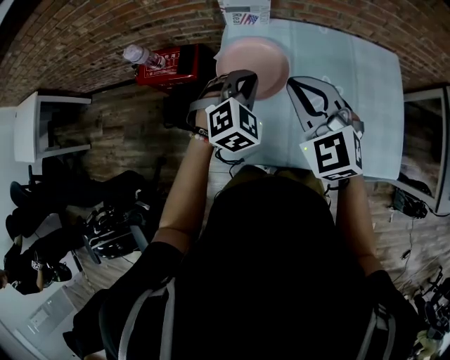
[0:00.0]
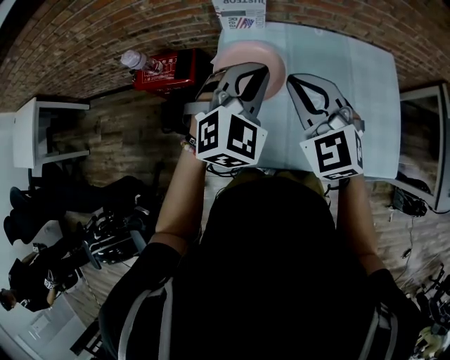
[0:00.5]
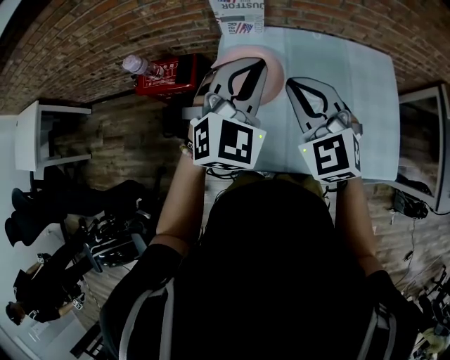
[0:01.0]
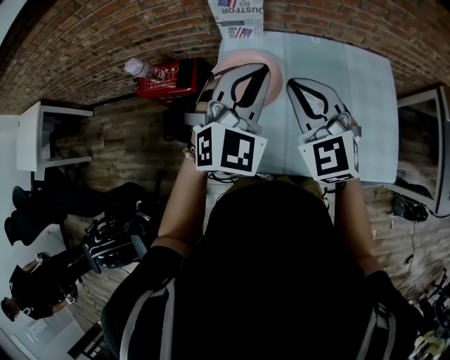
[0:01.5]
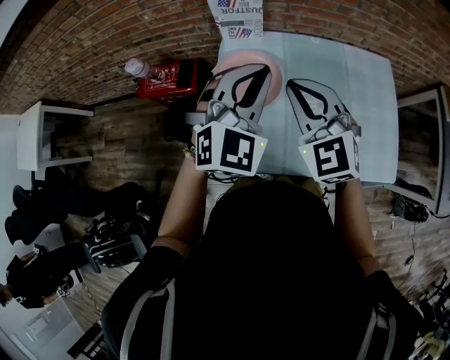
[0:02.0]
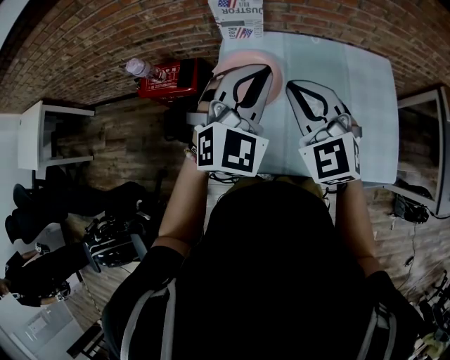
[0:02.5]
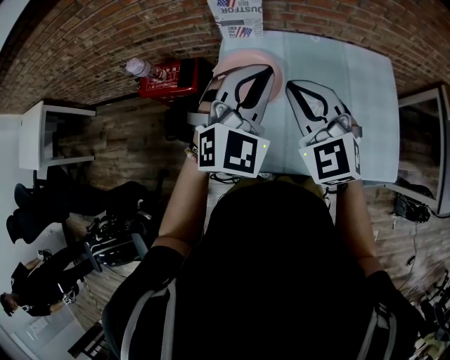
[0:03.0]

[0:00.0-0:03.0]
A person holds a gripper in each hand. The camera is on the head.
0:00.0 to 0:01.5: The left gripper shifts roughly 15 cm upward, and changes its angle by about 30 degrees.
0:01.5 to 0:03.0: The grippers stay close to where they were, moving slightly.

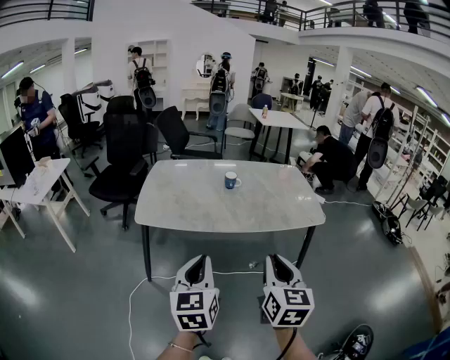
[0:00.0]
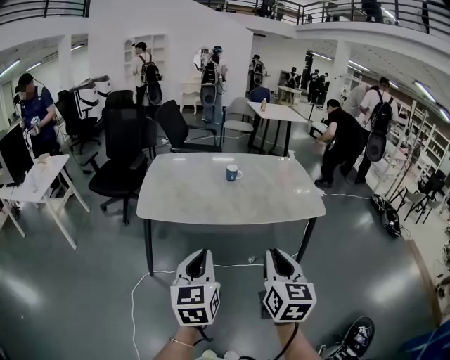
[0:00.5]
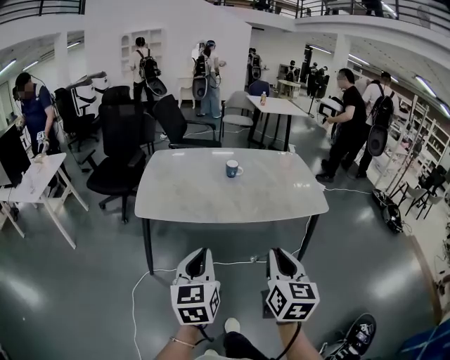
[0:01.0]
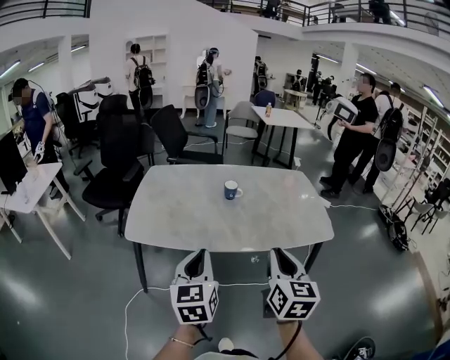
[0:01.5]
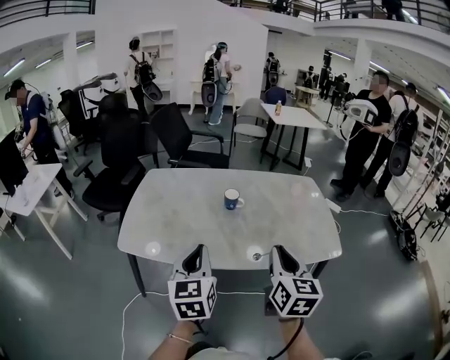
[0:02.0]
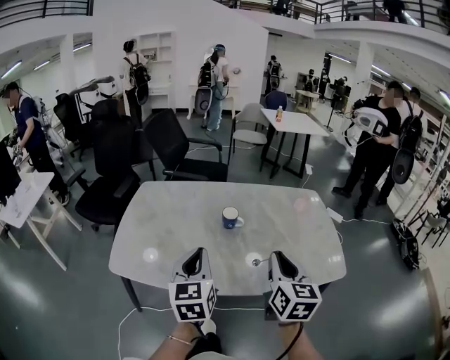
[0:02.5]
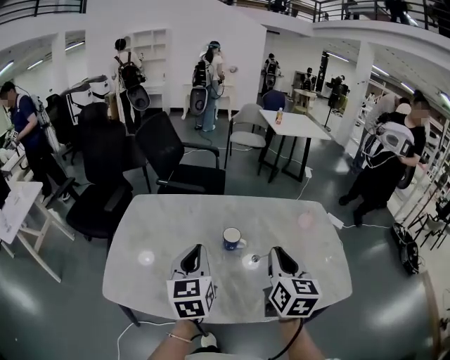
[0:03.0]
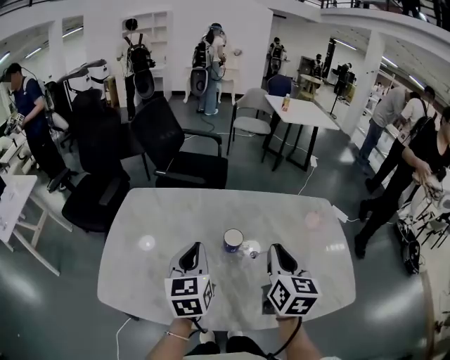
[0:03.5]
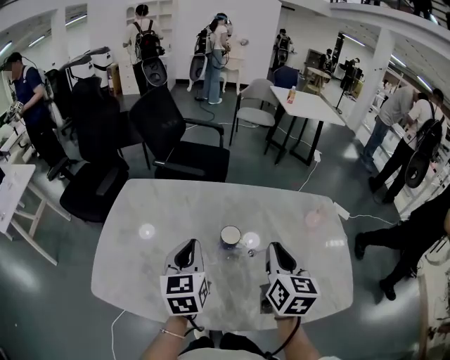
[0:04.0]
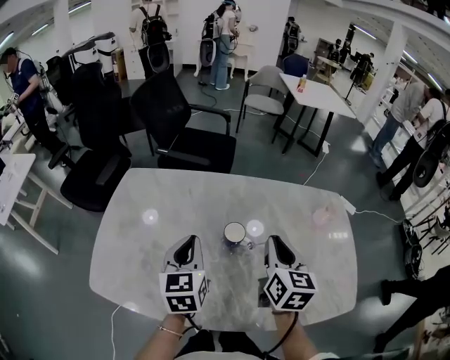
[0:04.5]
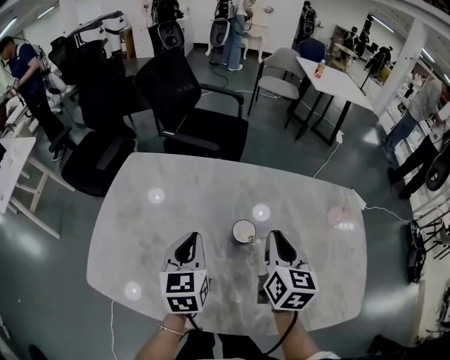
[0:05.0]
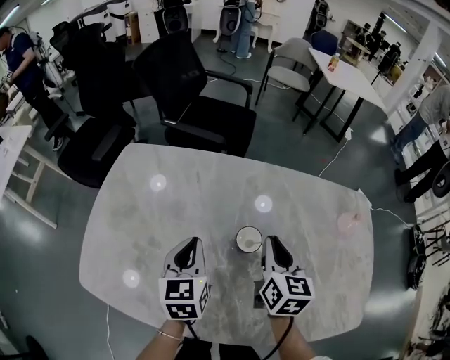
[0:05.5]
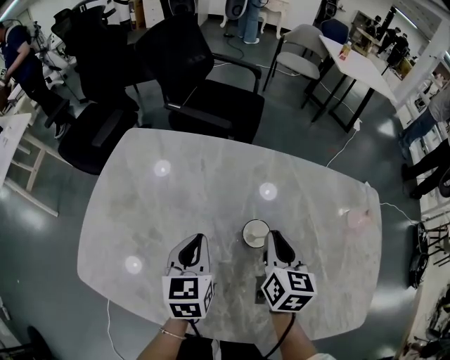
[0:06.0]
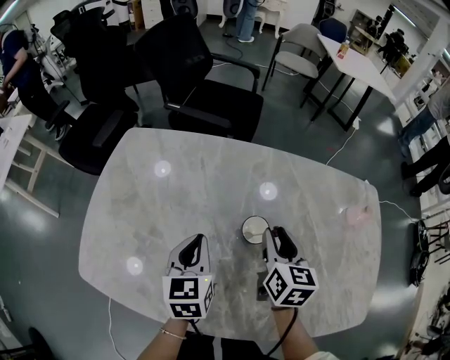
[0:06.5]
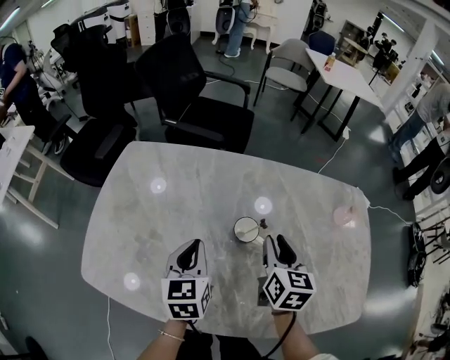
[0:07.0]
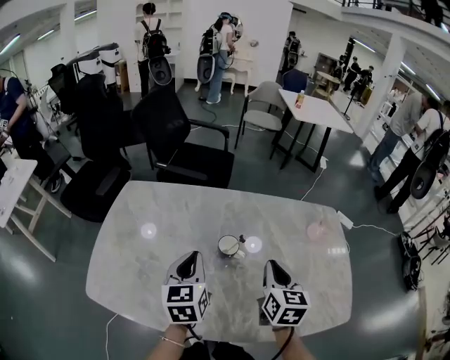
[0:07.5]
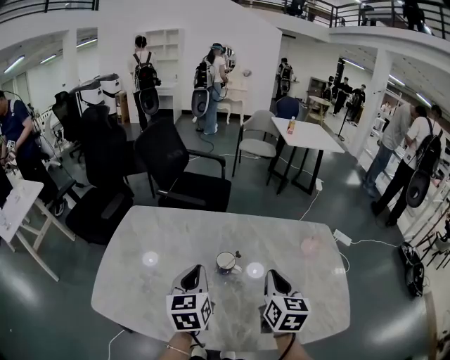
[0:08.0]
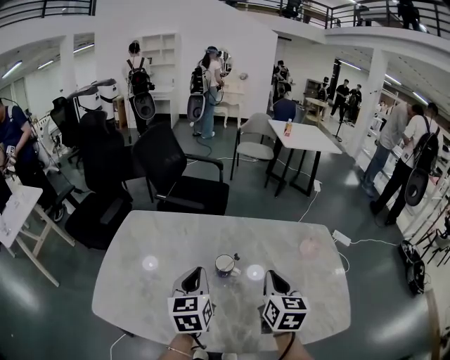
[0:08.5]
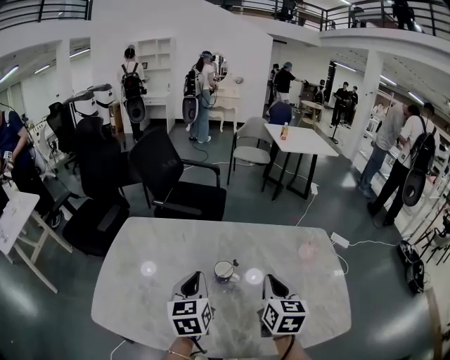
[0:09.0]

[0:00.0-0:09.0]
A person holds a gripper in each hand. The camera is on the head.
0:00.0 to 0:02.0: Both grippers travel together forward, approximately 25 cm.
0:02.0 to 0:04.5: Both grippers travel together forward, roughly 30 cm.
0:04.5 to 0:07.0: The grippers both shift downward by approximately 10 cm.
0:07.0 to 0:09.0: The right gripper goes some 15 cm upward, backward and to the right, and closes; the left gripper goes some 10 cm upward and to the right.

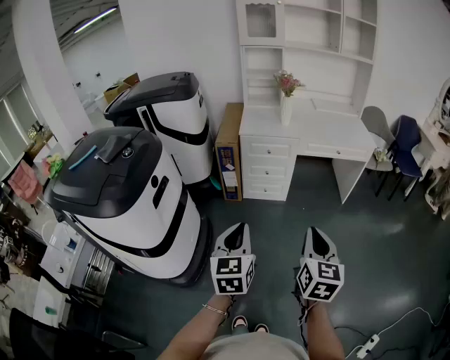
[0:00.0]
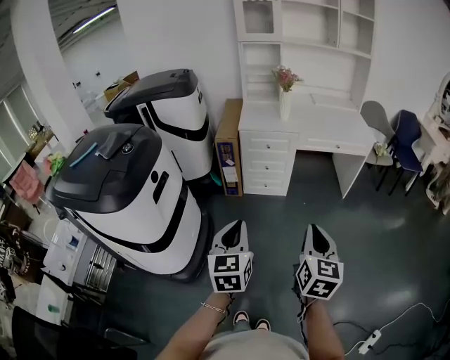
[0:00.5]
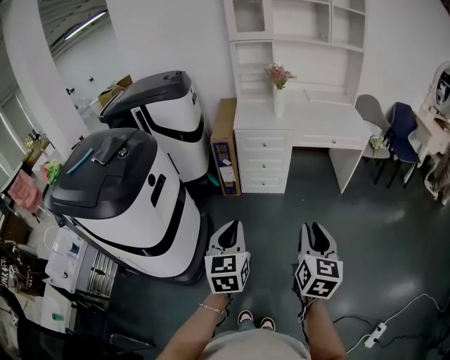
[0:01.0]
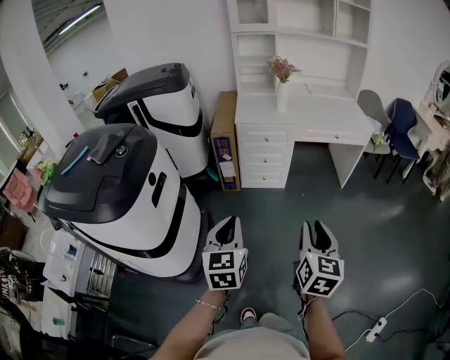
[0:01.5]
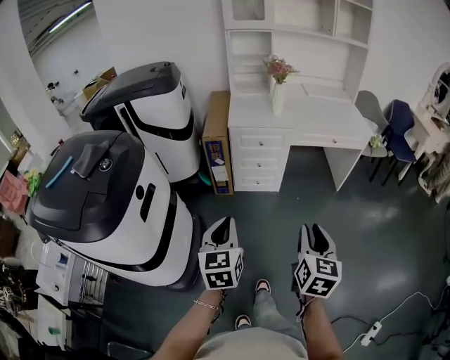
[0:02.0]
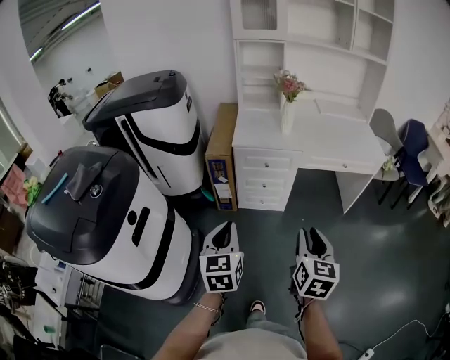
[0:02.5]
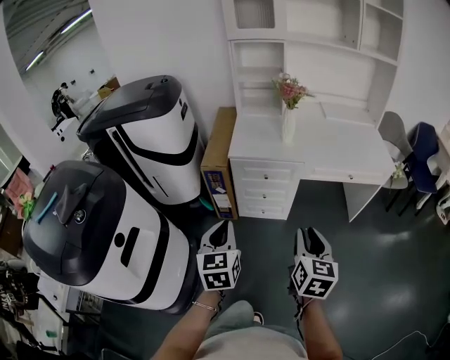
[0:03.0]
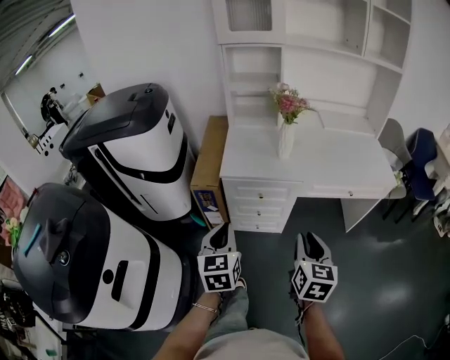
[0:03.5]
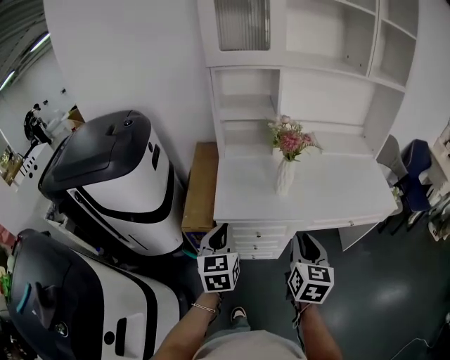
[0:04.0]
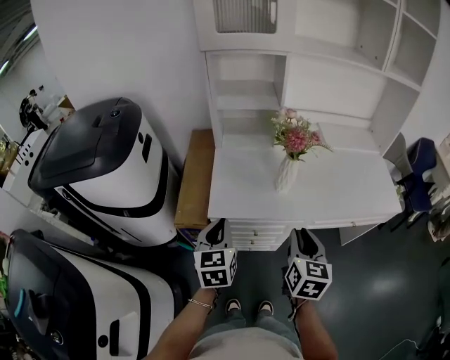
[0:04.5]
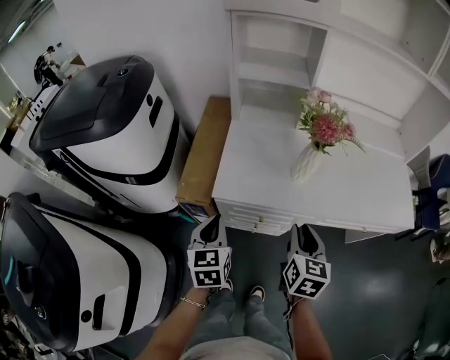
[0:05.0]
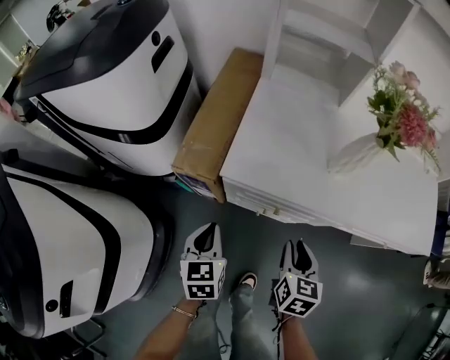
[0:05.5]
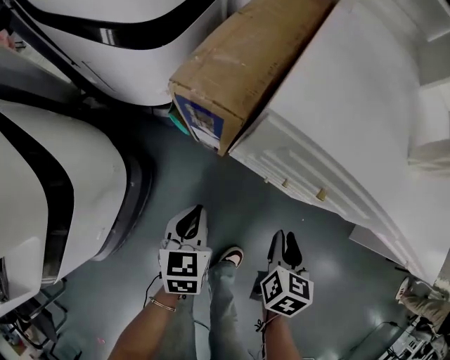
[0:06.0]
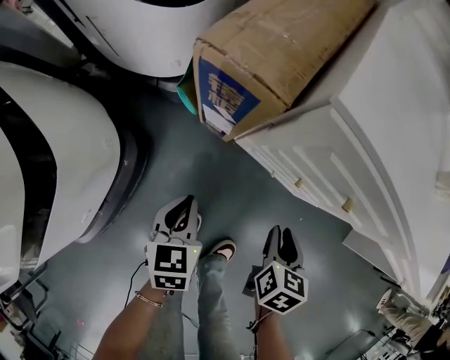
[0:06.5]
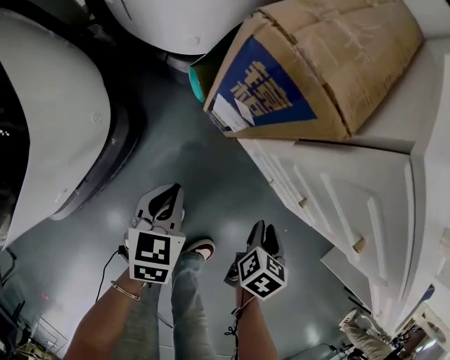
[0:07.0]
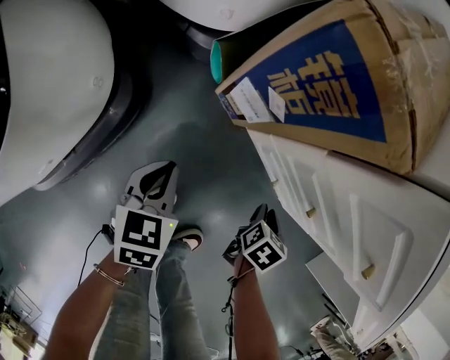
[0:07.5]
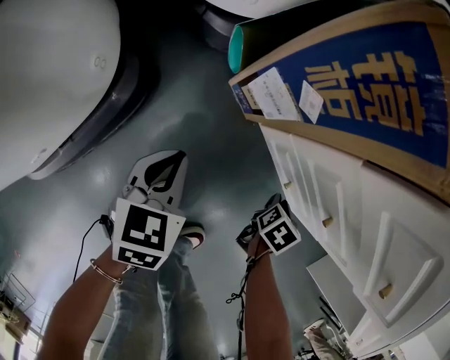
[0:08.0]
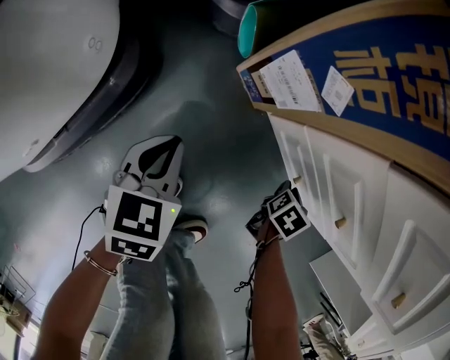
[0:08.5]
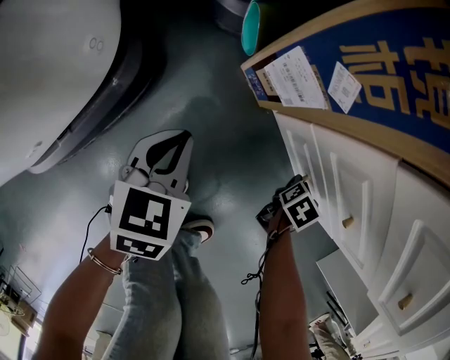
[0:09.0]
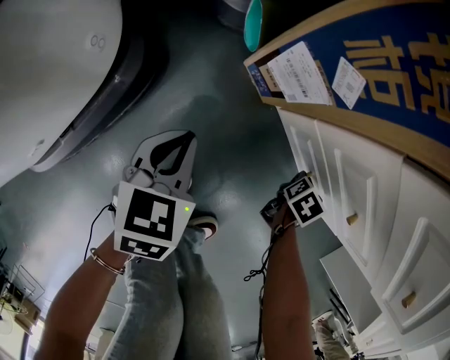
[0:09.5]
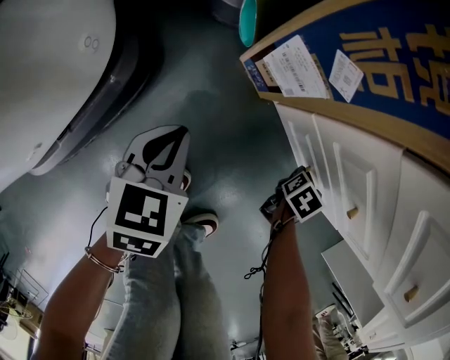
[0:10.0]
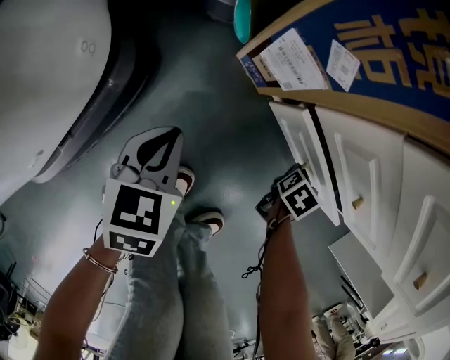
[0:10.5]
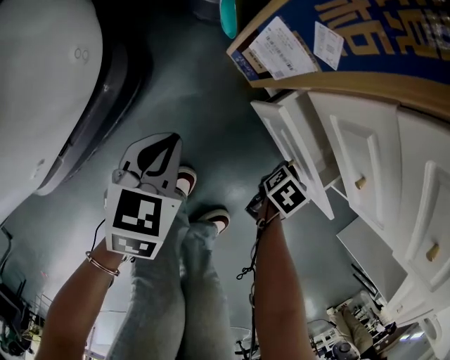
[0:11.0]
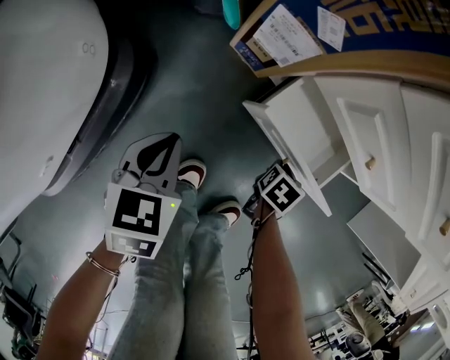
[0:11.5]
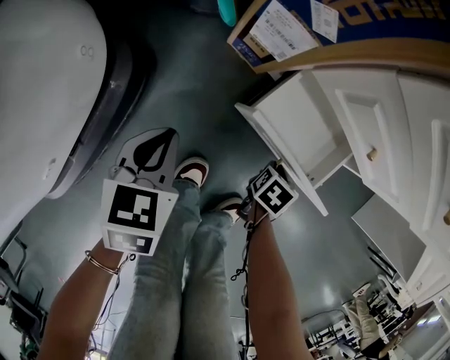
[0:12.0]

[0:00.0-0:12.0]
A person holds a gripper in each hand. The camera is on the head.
0:00.0 to 0:02.0: The left gripper heads forward and to the left, covering some 10 cm, while the right gripper shifts about 5 cm forward, and opens.
0:02.0 to 0:04.0: The pair of grippers is taken forward, some 50 cm.
0:04.0 to 0:06.0: The two grippers go about 40 cm downward. The right gripper rotates roughly 30 degrees. The left gripper swivels roughly 30 degrees.
0:06.0 to 0:08.0: The left gripper is displaced downward and to the left by roughly 20 cm; the right gripper goes some 30 cm downward, and rotates approximately 20 degrees.
0:08.0 to 0:10.0: The right gripper moves about 5 cm.
0:10.0 to 0:12.0: The right gripper goes about 15 cm backward. The left gripper travels backward by some 5 cm.

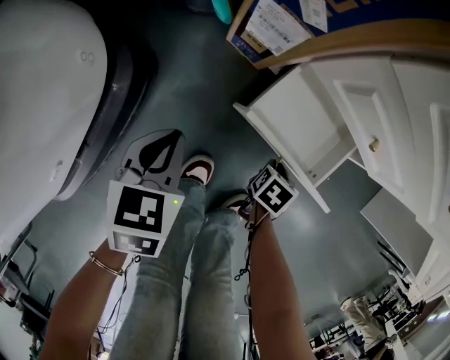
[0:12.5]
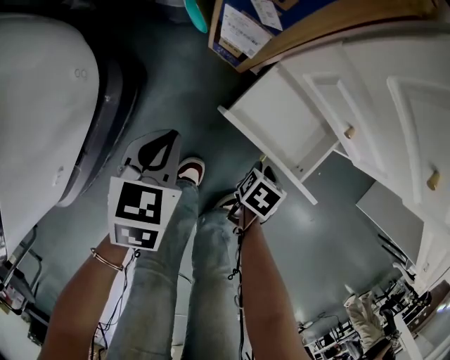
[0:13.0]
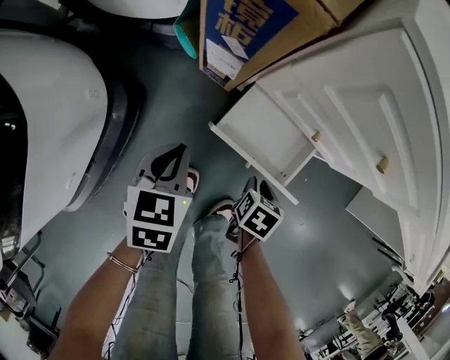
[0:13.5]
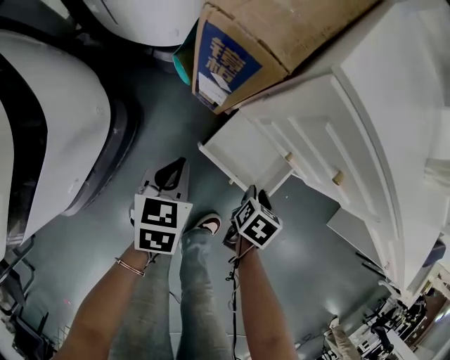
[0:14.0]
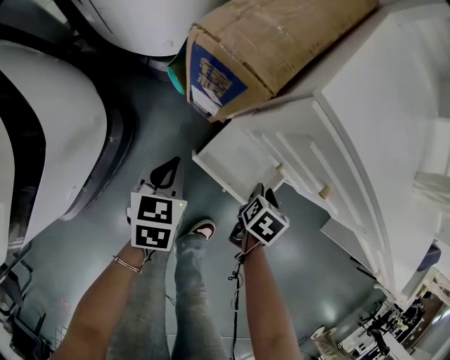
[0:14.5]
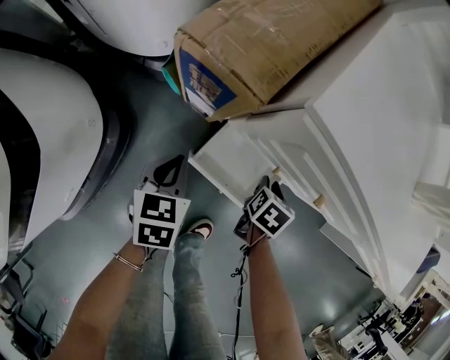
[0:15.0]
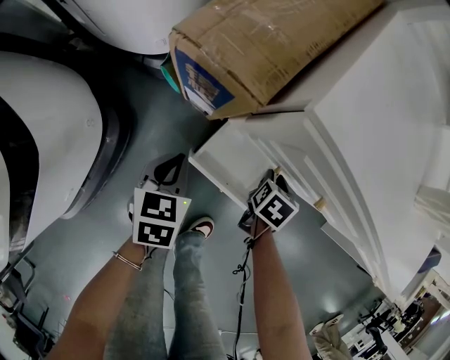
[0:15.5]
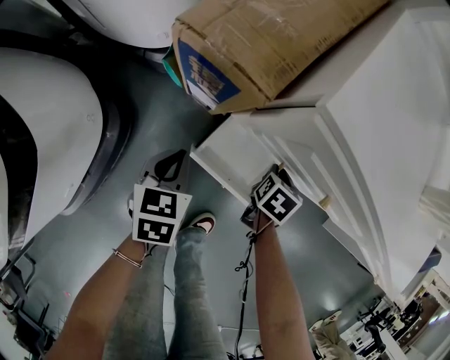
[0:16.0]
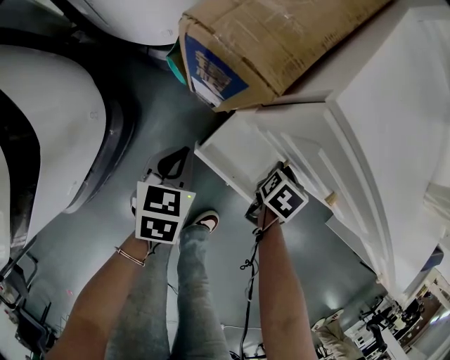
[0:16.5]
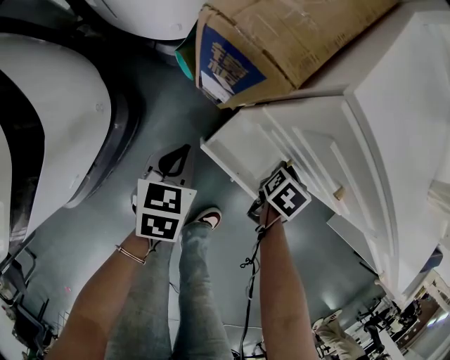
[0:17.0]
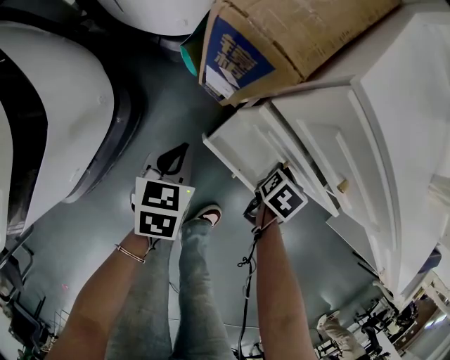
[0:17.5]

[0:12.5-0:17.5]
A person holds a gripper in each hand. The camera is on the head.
0:12.5 to 0:15.0: The left gripper heads upward, forward and to the right, covering approximately 20 cm. Meanwhile the right gripper is displaced upward and forward by roughly 25 cm.
0:15.0 to 0:17.5: The grippers make only small movements.
